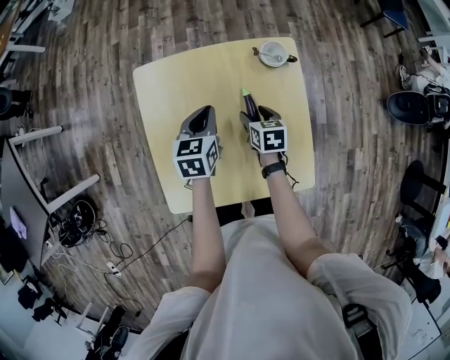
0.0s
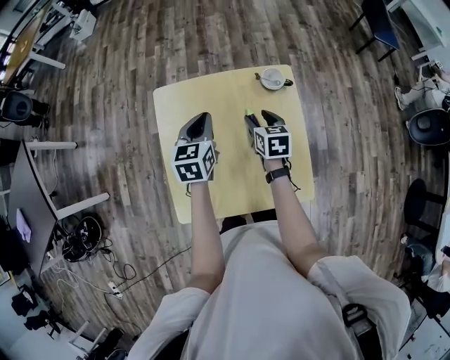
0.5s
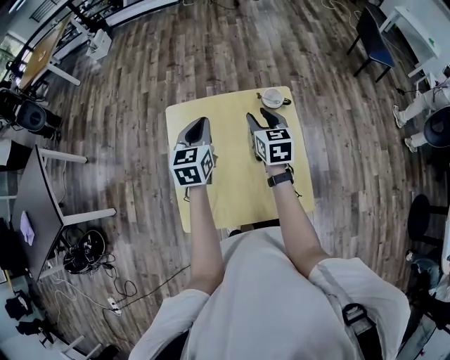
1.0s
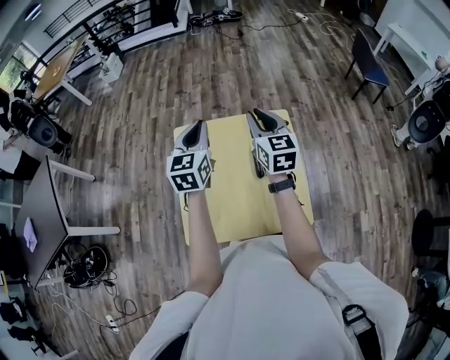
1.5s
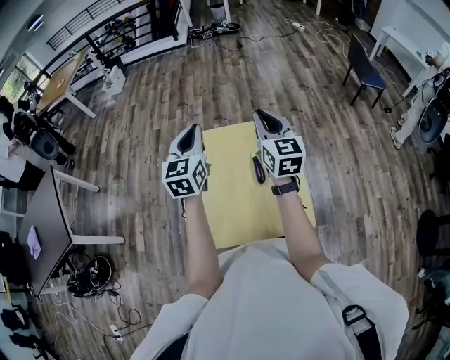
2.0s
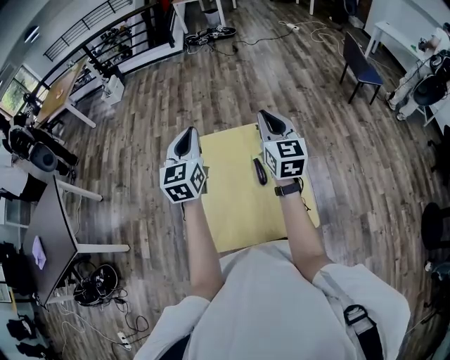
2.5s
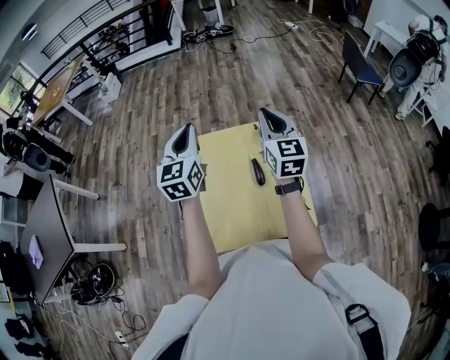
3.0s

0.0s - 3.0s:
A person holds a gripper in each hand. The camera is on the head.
0.0s - 1.5s: Both grippers travel together upward, roughly 30 cm. The left gripper turns by some 30 degrees; the right gripper angles its fingers upward, by some 40 degrees, and closes its fingers.
1.5s - 3.0s: Both grippers travel together upward, some 5 cm.

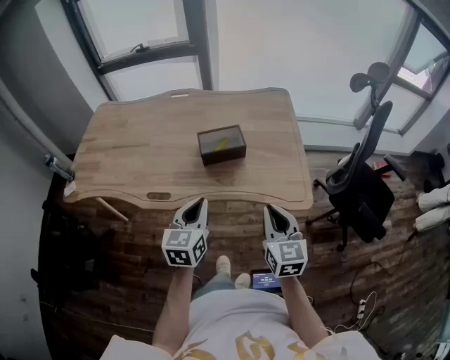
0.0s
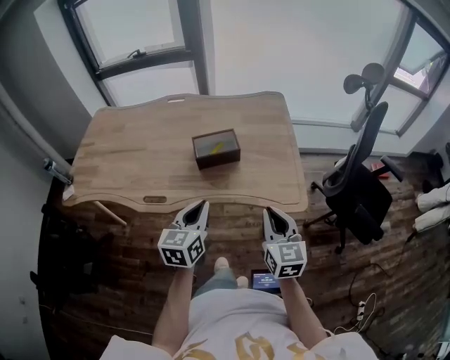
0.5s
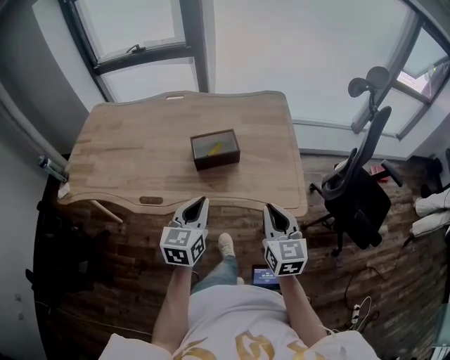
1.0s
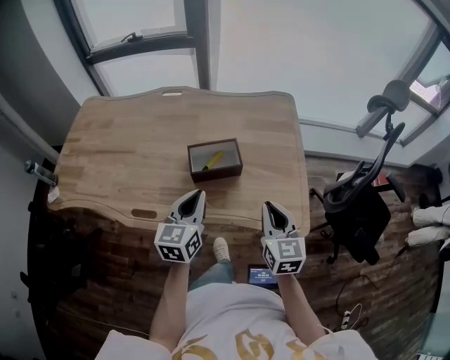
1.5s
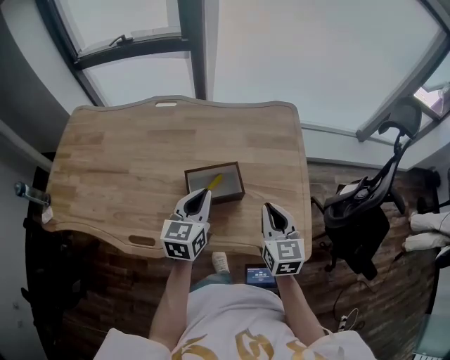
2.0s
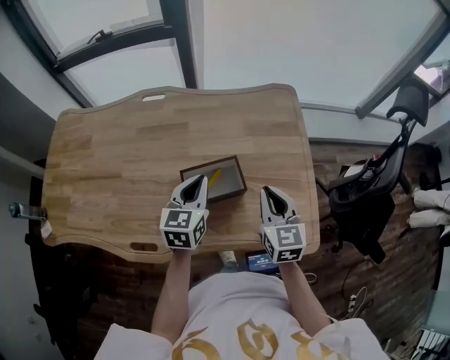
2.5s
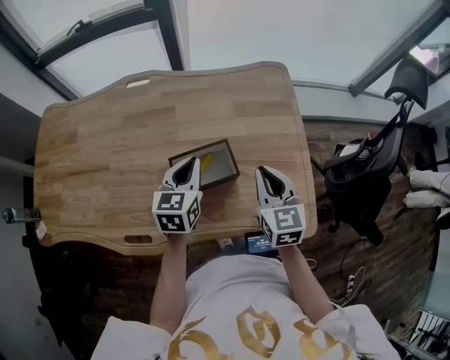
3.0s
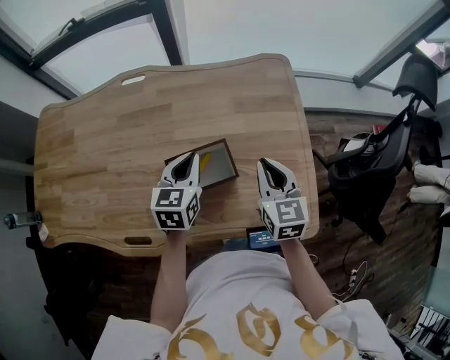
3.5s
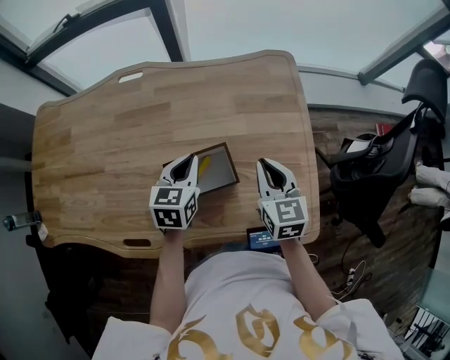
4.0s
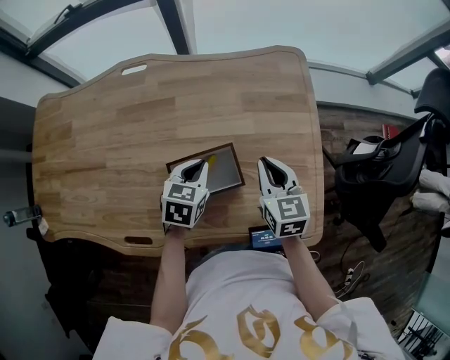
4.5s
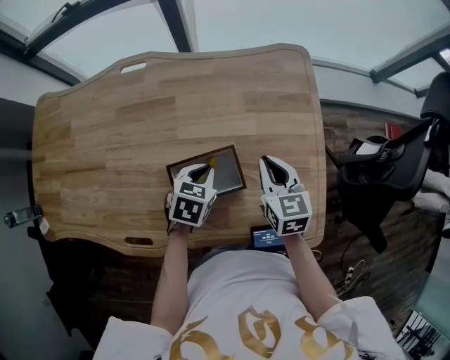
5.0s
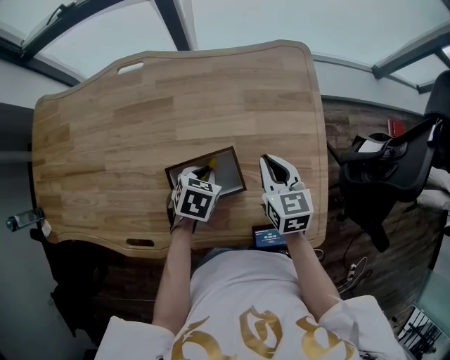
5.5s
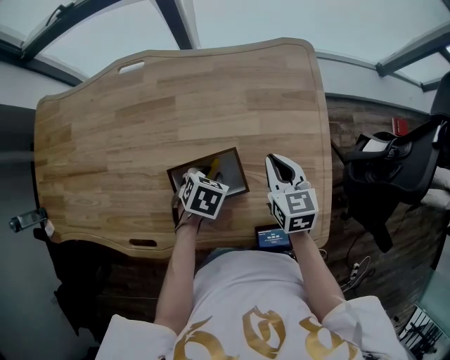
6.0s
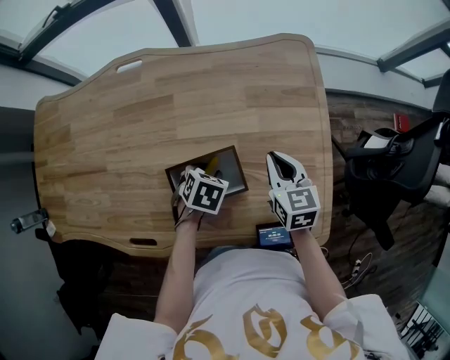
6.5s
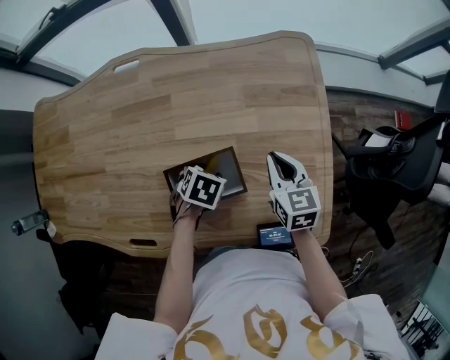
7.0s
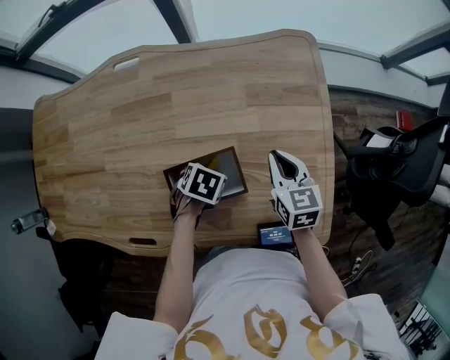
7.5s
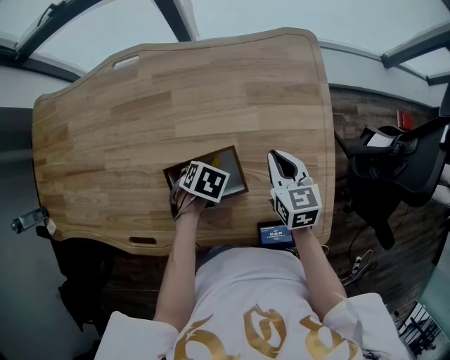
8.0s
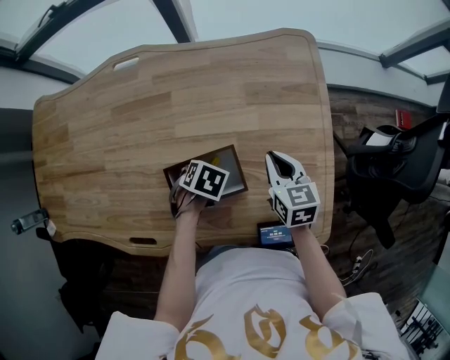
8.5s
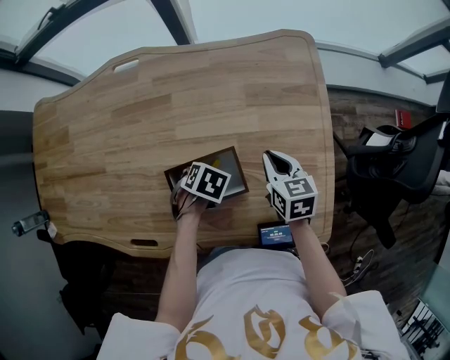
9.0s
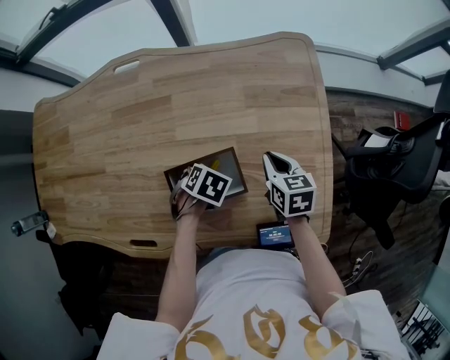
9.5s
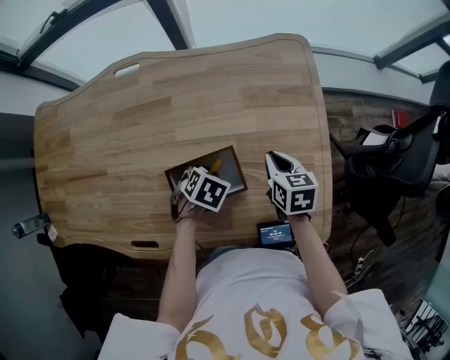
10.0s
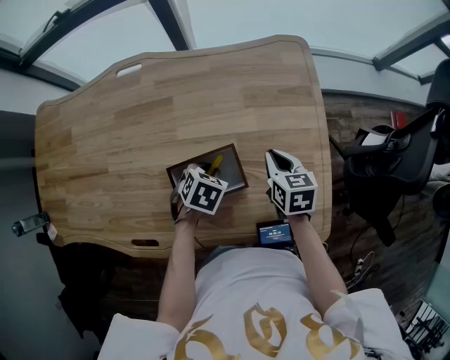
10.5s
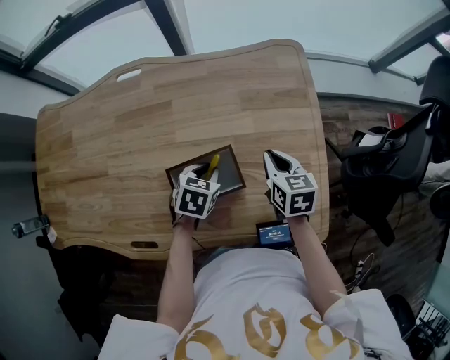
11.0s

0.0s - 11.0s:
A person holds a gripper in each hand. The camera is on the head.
0.0s - 2.0s: The grippers both shift forward by about 25 cm.
2.0s - 3.5s: The left gripper goes roughly 10 cm forward and downward. Meanwhile the right gripper moves forward, some 10 cm.
3.5s - 5.5s: The right gripper is displaced downward and forward by roughly 10 cm. Meanwhile the left gripper heads downward, covering approximately 15 cm, and tilts its fingers roughly 40 degrees downward.
5.5s - 7.5s: The left gripper opens its fingers.
7.5s - 9.0s: The left gripper closes its fingers.
9.0s - 11.0s: The left gripper changes place by about 5 cm, and turns by some 30 degrees.

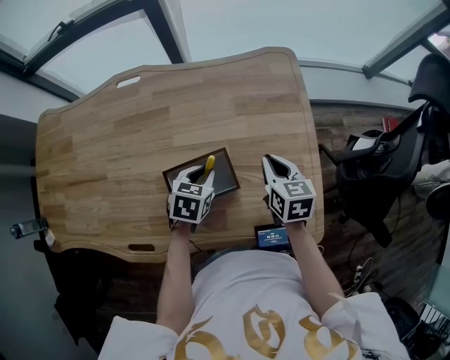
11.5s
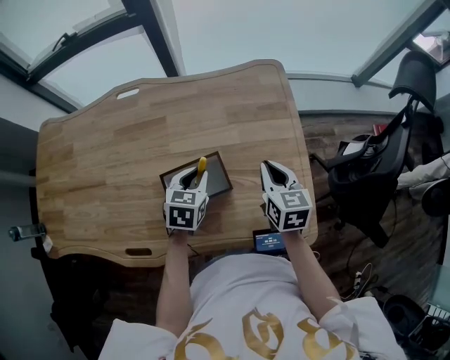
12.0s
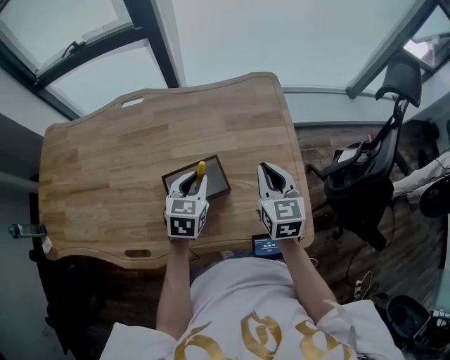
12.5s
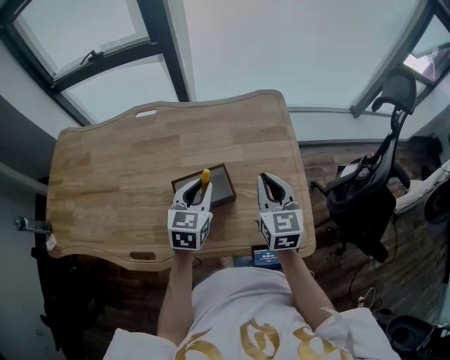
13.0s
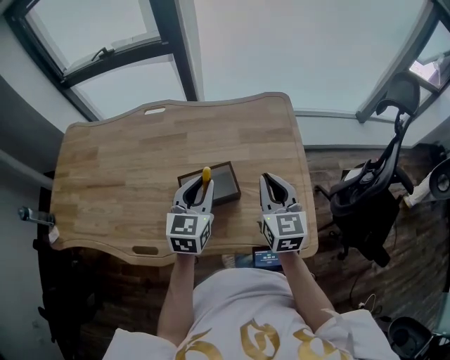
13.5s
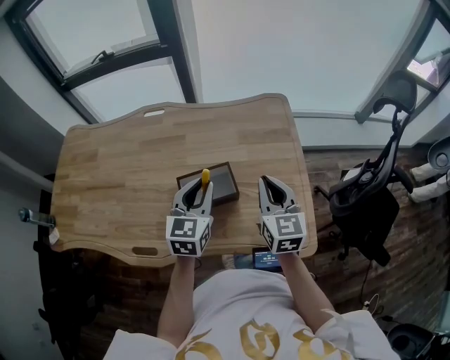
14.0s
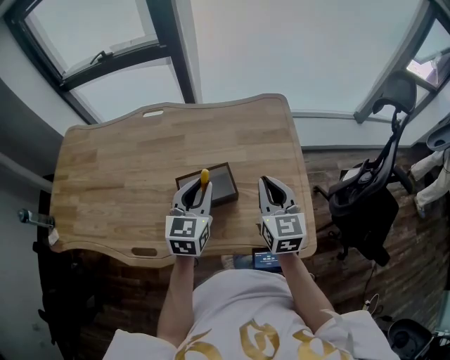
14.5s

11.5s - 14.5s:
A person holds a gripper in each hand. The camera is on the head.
11.5s - 13.0s: The right gripper moves upward and backward, about 15 cm, and changes its angle by approximately 30 degrees. The left gripper heads upward, covering some 15 cm, and rotates approximately 30 degrees.
13.0s - 14.5s: The grippers move only a little.

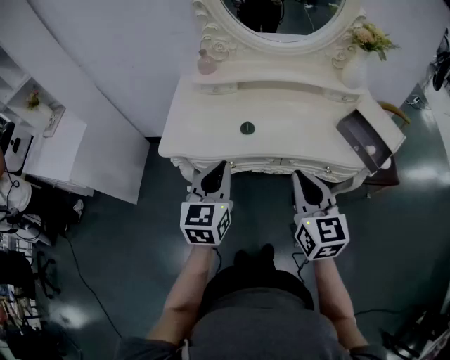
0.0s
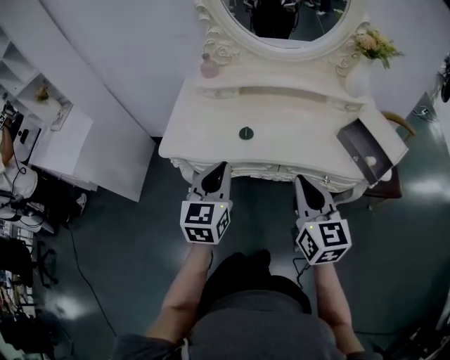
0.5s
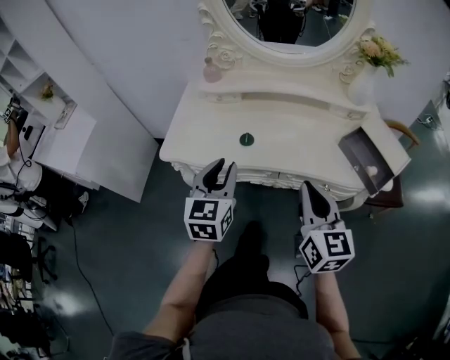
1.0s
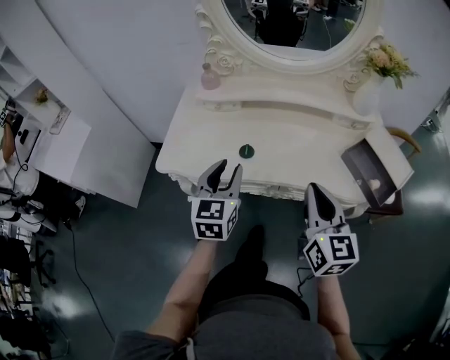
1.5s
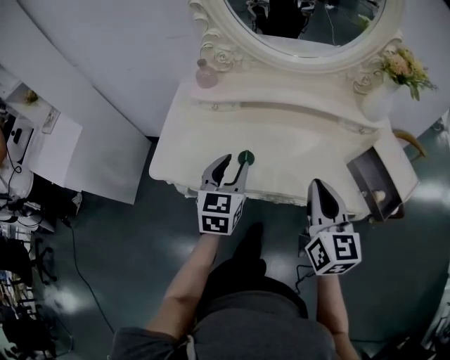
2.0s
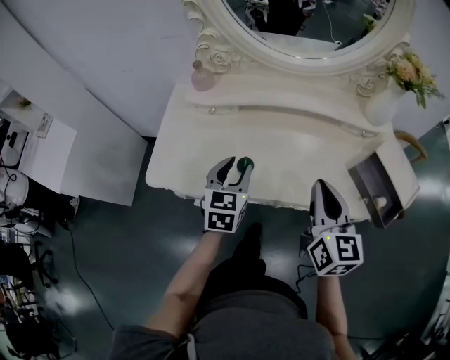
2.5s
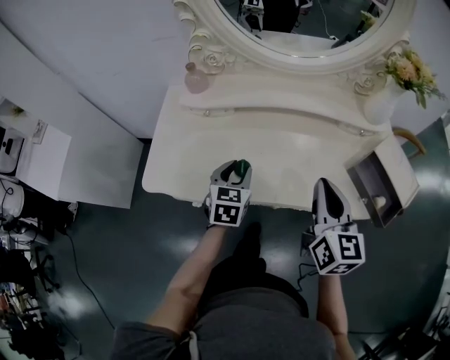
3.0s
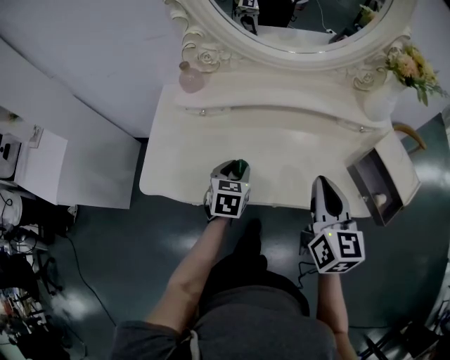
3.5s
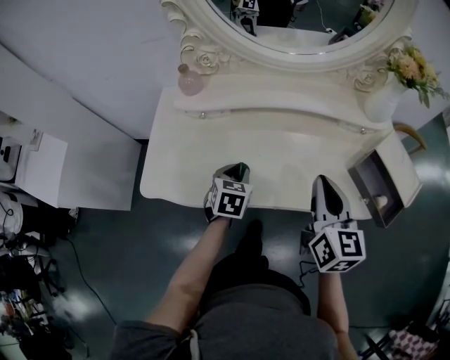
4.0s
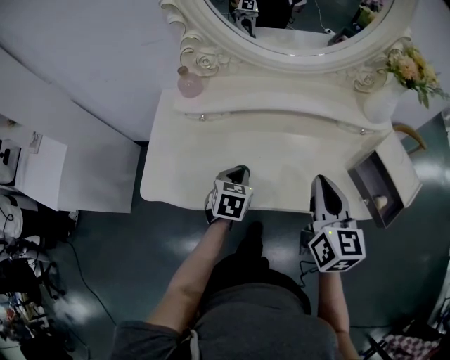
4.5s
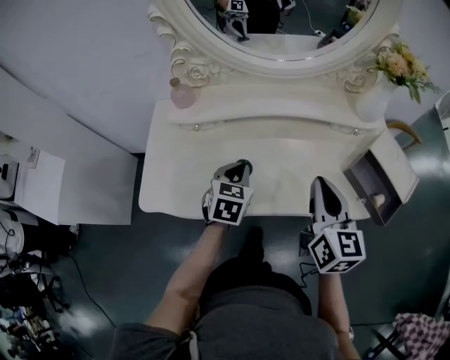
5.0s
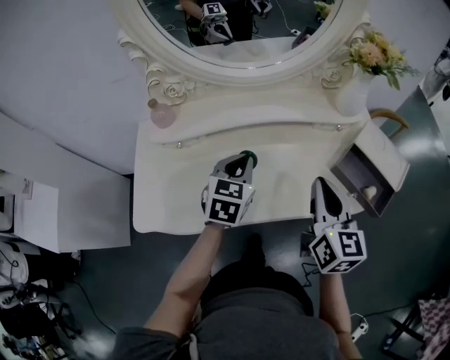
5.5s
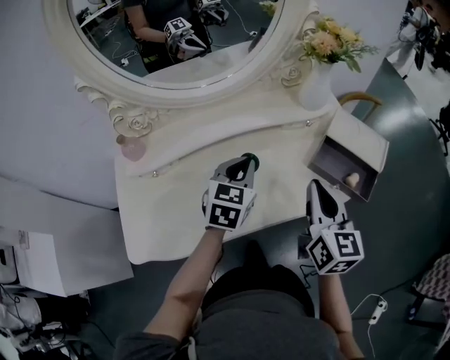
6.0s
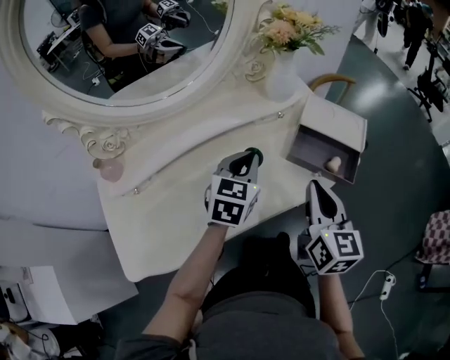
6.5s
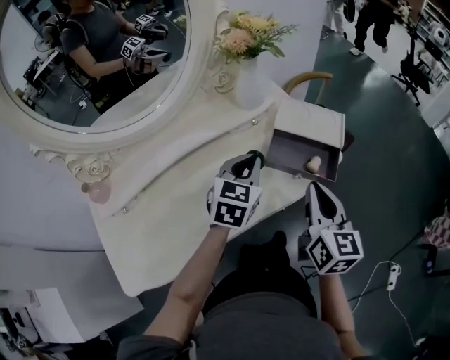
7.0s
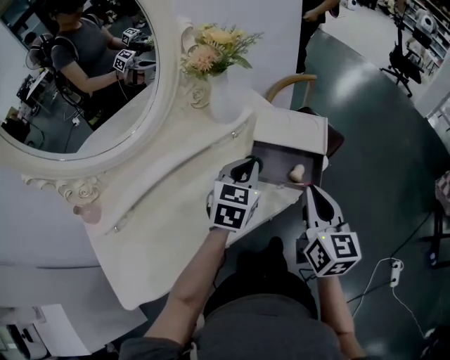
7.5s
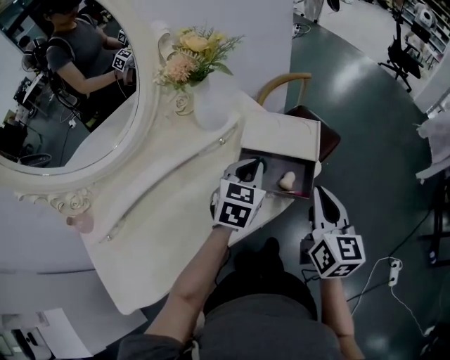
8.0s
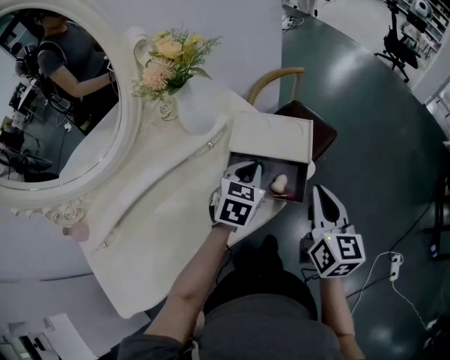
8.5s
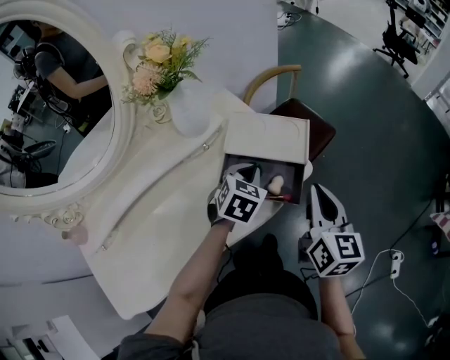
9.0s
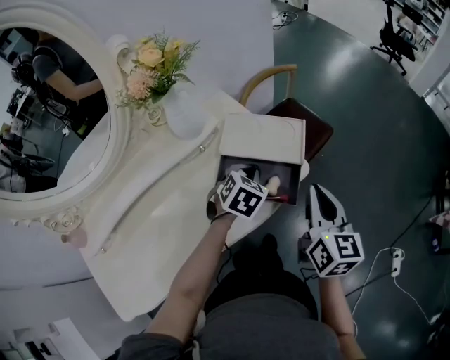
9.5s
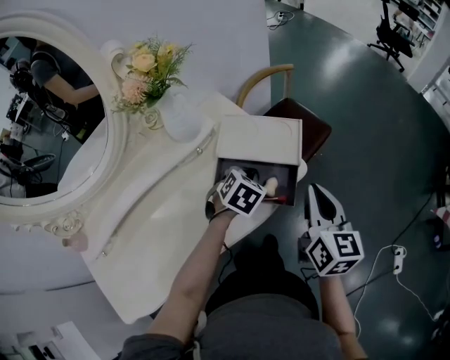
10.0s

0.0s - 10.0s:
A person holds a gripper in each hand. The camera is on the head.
0.0s - 2.0s: The left gripper heads forward, covering about 15 cm, and opens its fingers. Meanwhile the right gripper heads forward and to the right, covering approximately 15 cm.
2.0s - 4.0s: The right gripper travels forward by some 5 cm. Meanwhile the left gripper is displaced downward and forward by about 15 cm, and changes its angle by some 30 degrees.
4.0s - 6.0s: The left gripper heads to the right, upward and forward, covering about 20 cm, swivels some 30 degrees, and closes. The right gripper is displaced to the right by approximately 10 cm, and rotates approximately 20 degrees.
6.0s - 8.0s: The right gripper shifts some 20 cm to the right, and rotates approximately 20 degrees, while the left gripper heads to the right and forward, covering approximately 30 cm, and rotates roughly 20 degrees.
8.0s - 10.0s: The right gripper moves about 5 cm; the left gripper moves downward, approximately 10 cm, and changes its angle by roughly 30 degrees.
